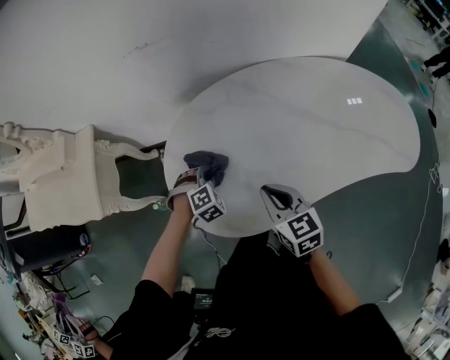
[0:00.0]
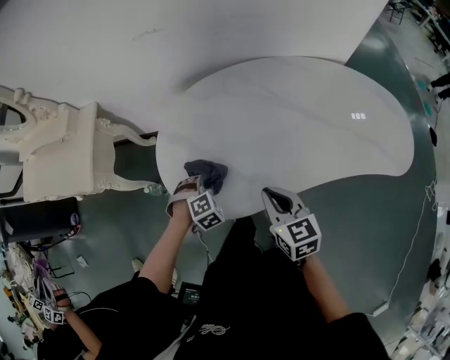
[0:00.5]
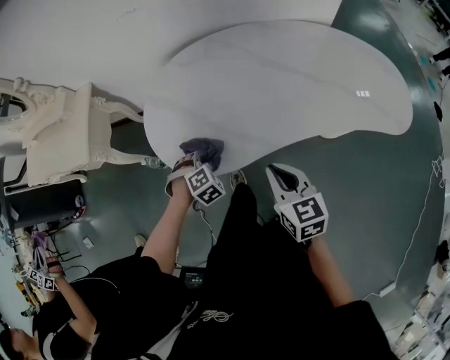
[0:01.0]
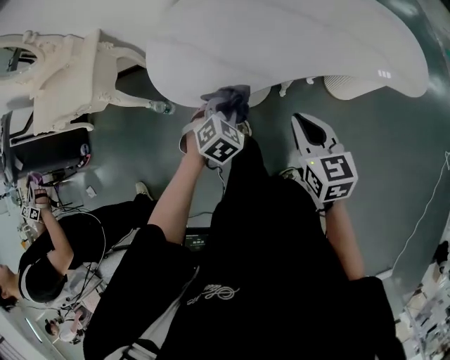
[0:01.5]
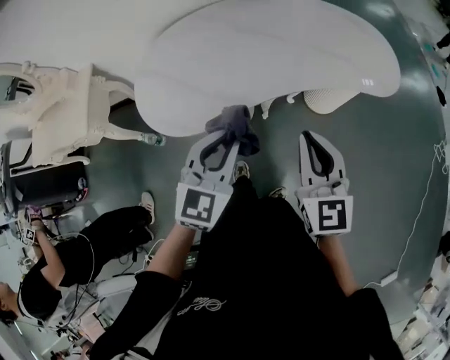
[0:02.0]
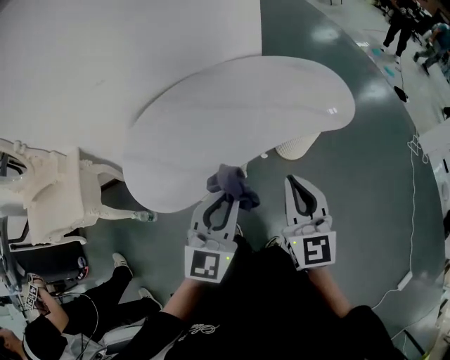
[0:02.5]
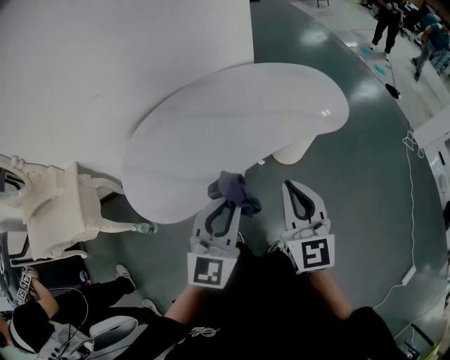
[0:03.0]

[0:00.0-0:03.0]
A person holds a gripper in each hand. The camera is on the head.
0:00.0 to 0:01.5: The two grippers go approximately 30 cm backward and to the right. The left gripper changes its angle by approximately 20 degrees.
0:01.5 to 0:03.0: The left gripper shifts about 25 cm upward, and points its fingers about 50 degrees further upward. The right gripper goes about 20 cm upward, and turns by about 40 degrees.

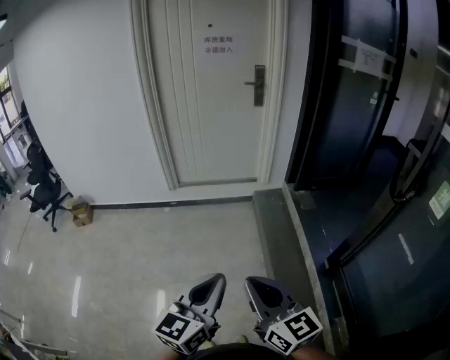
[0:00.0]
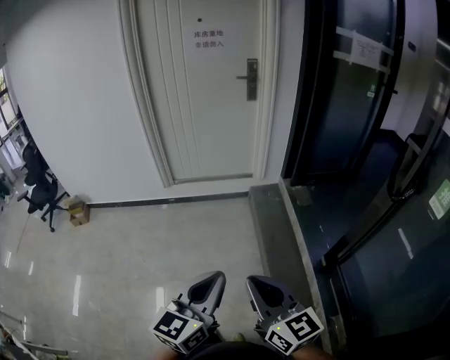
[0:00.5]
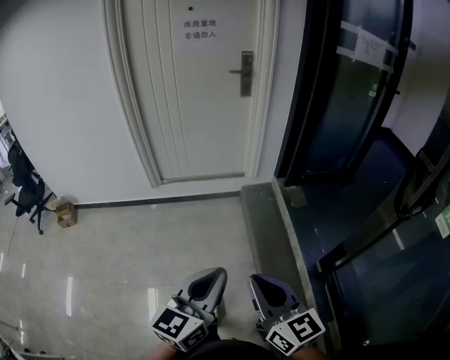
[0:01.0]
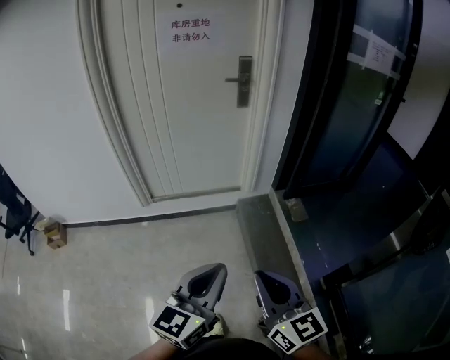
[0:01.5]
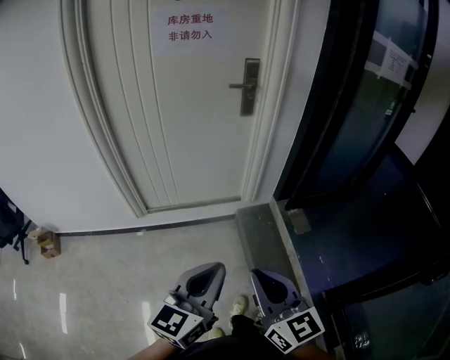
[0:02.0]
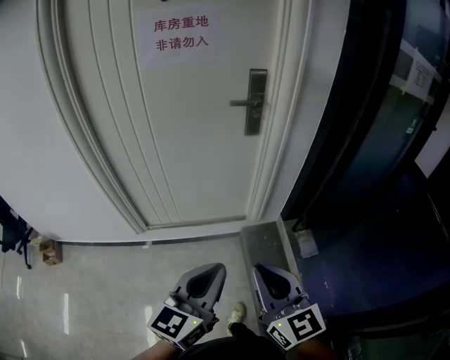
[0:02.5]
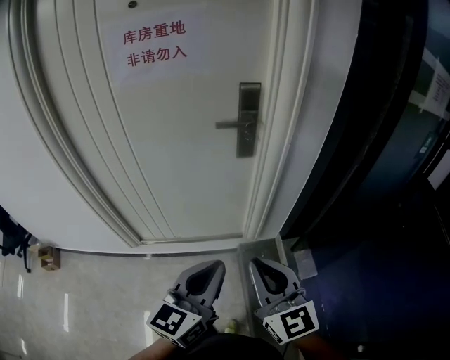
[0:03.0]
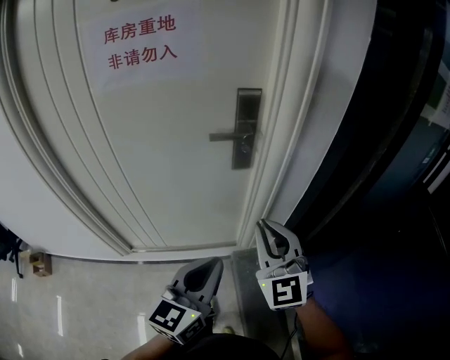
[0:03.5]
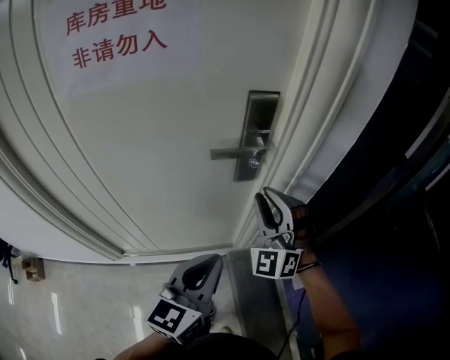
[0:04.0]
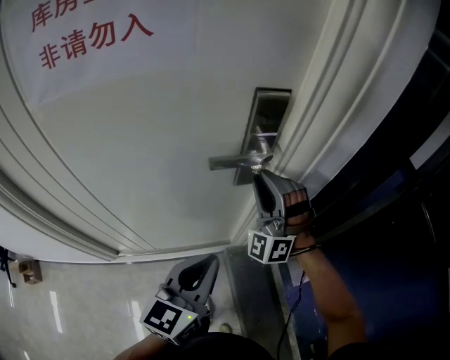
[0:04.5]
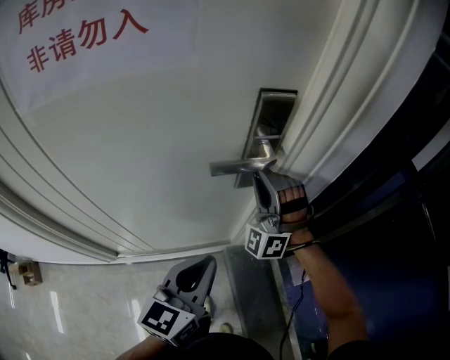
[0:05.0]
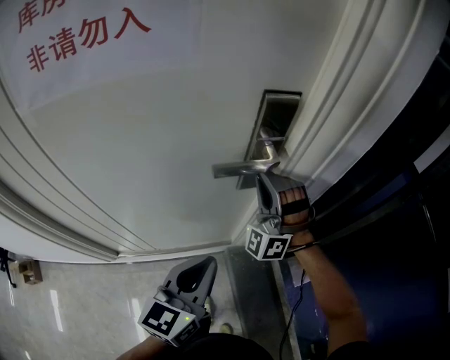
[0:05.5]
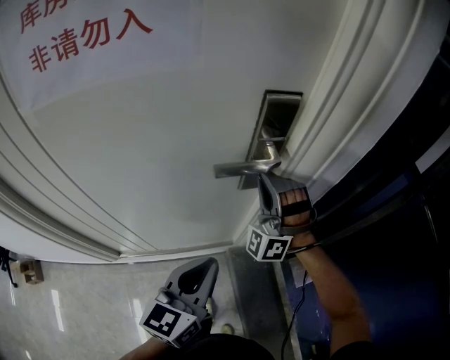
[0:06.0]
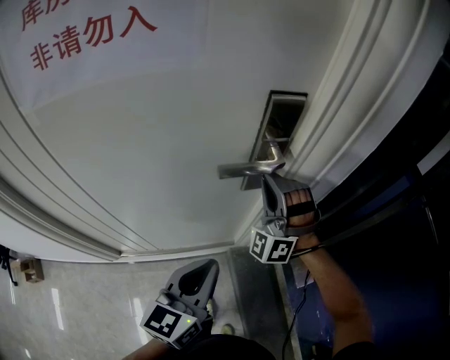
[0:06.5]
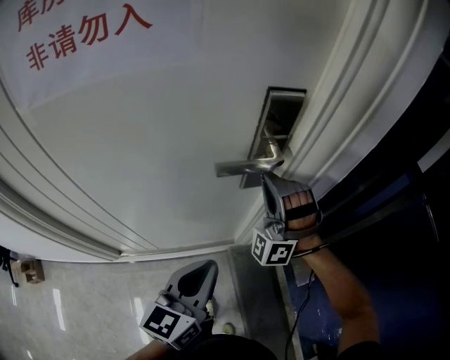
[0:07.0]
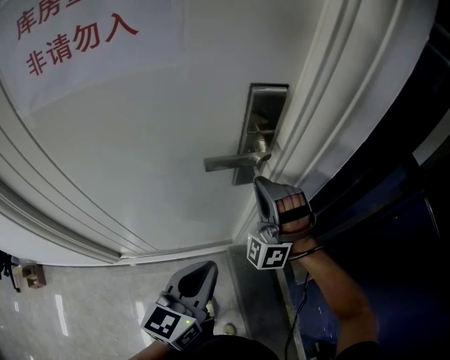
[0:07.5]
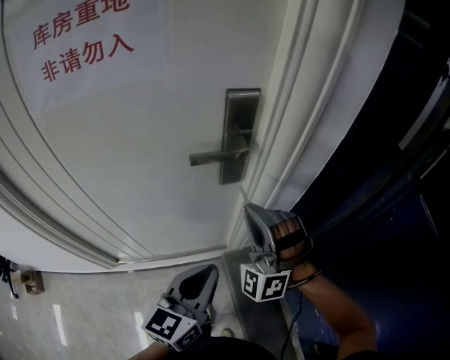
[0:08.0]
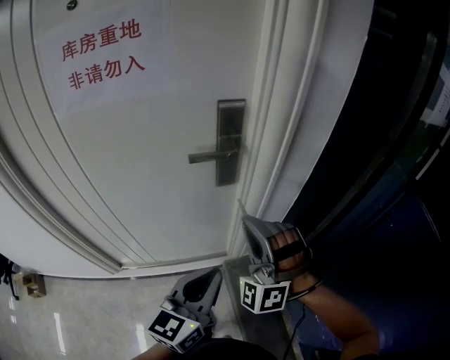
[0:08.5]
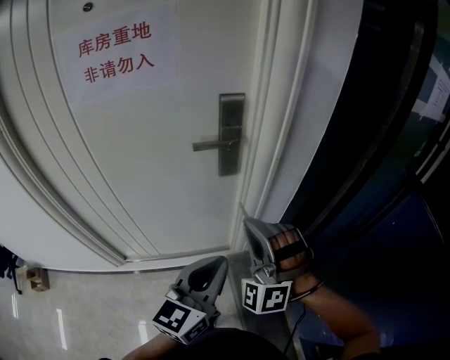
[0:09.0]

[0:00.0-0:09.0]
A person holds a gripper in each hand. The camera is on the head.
0:00.0 to 0:02.0: The pair of grippers is taken forward, about 40 cm.
0:02.0 to 0:04.5: Both grippers are carried forward, approximately 70 cm. The right gripper twists approximately 90 degrees counterclockwise, seen from behind.
0:04.5 to 0:07.0: The grippers move only a little.
0:07.0 to 0:09.0: The right gripper travels backward by approximately 25 cm; the left gripper travels backward, to the right and upward by approximately 20 cm.

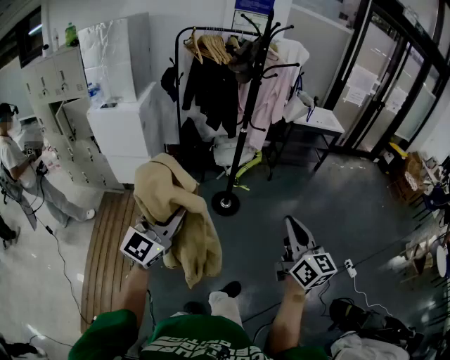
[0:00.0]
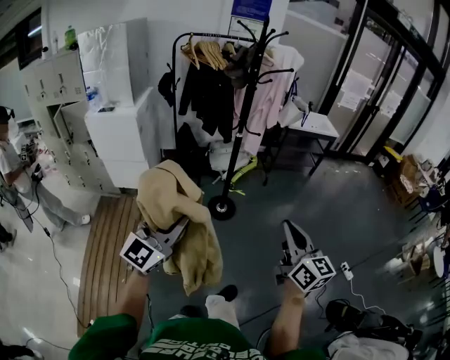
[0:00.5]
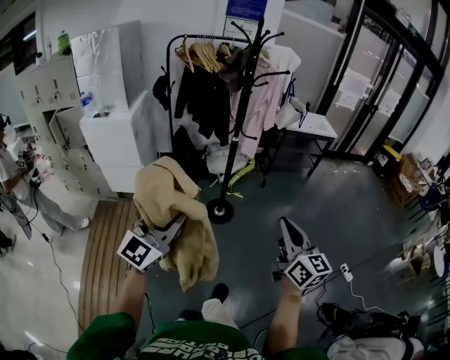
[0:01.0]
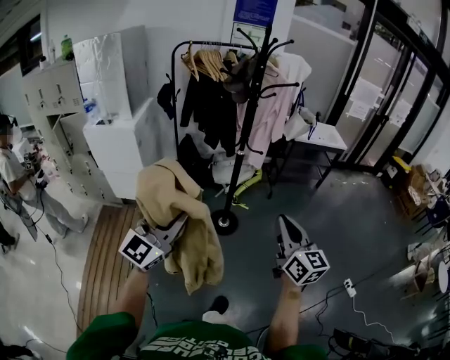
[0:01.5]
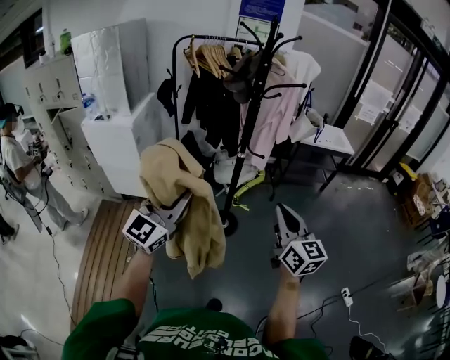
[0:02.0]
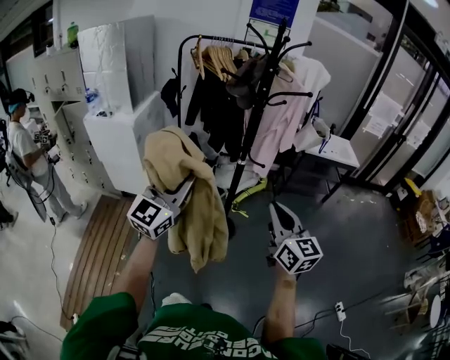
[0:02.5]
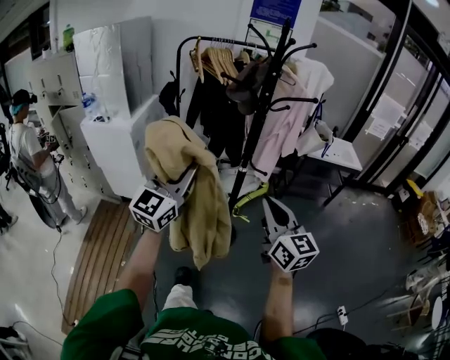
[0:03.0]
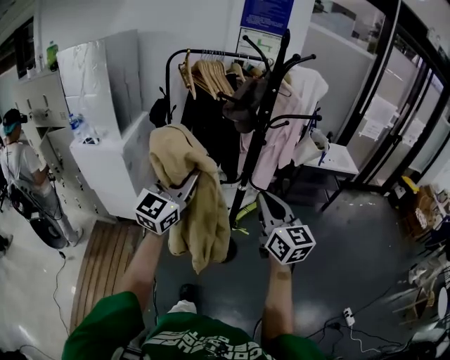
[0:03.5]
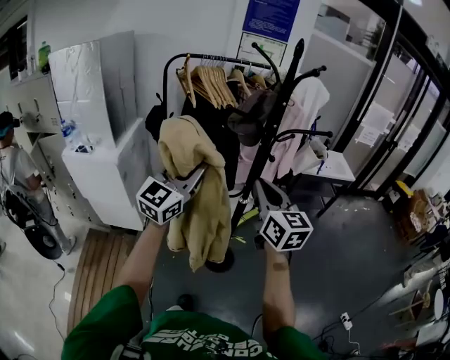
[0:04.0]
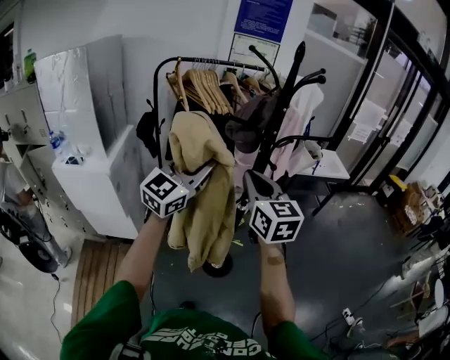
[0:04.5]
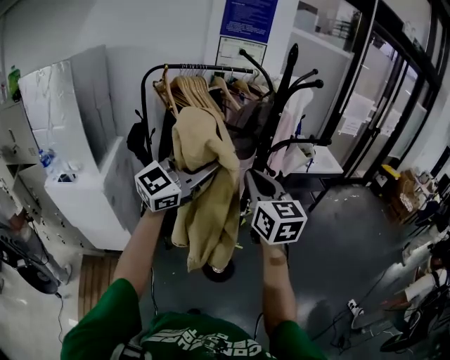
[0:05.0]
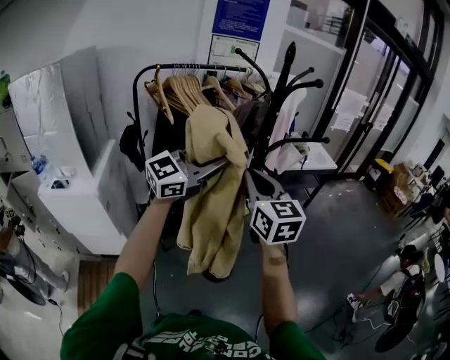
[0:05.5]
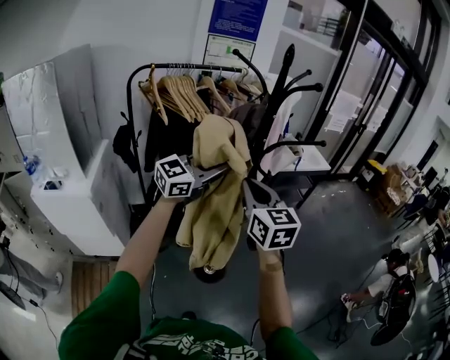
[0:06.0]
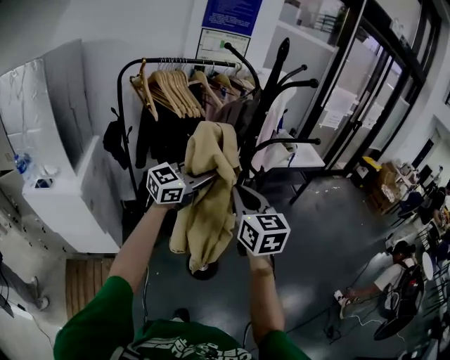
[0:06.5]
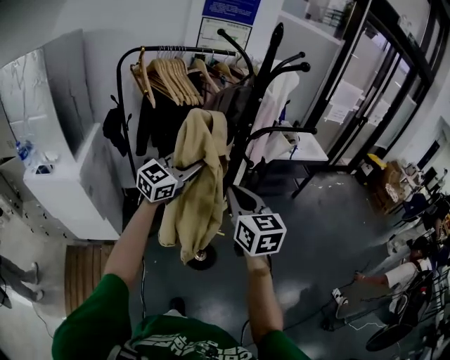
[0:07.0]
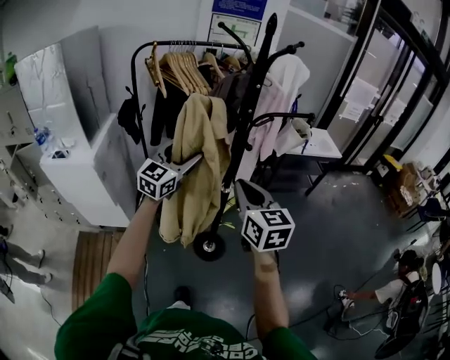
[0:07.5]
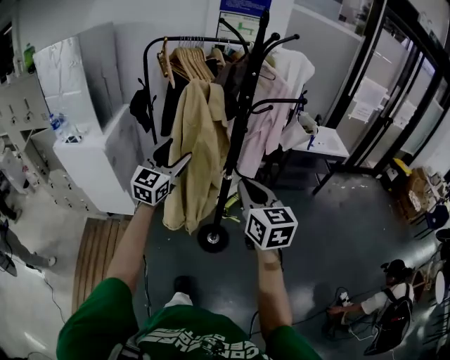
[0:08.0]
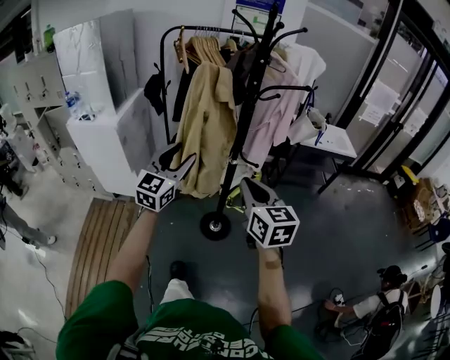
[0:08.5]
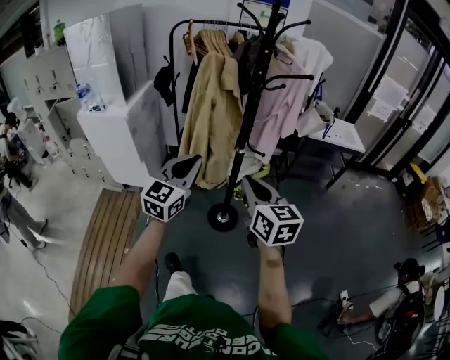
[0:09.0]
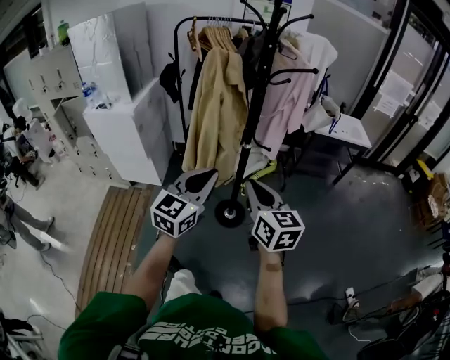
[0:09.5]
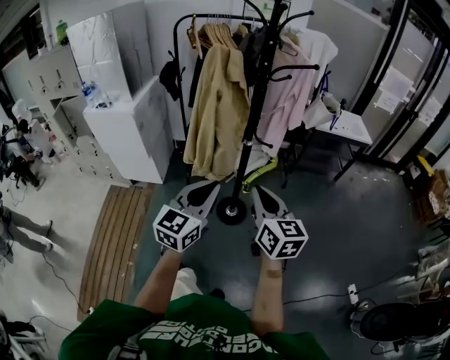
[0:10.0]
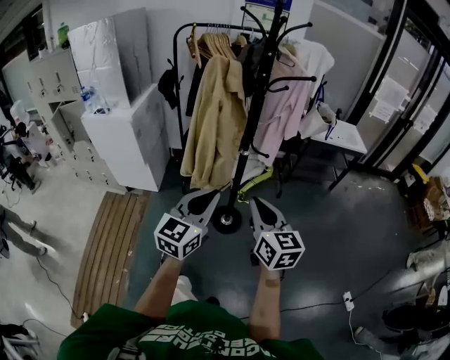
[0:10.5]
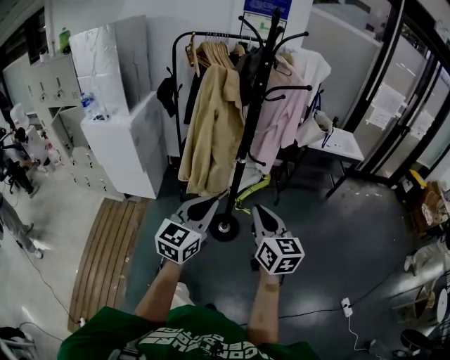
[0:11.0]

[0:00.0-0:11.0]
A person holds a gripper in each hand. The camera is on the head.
0:00.0 to 0:02.0: The grippers both shift forward by about 20 cm.
0:02.0 to 0:03.5: The left gripper heads forward, covering approximately 25 cm. The right gripper is displaced forward and to the left by approximately 20 cm.
0:03.5 to 0:05.5: The left gripper ends up some 15 cm from where it was, and swivels approximately 40 degrees. Meanwhile the right gripper shifts by approximately 20 cm.
0:05.5 to 0:07.5: The left gripper goes approximately 10 cm downward, rotates some 40 degrees, and opens, while the right gripper moves to the right and downward, some 10 cm.
0:07.5 to 0:09.0: The right gripper heads backward, covering about 15 cm. The left gripper shifts approximately 25 cm backward, and closes its fingers.
0:09.0 to 0:11.0: The right gripper shifts by about 5 cm, while the left gripper goes some 10 cm backward and to the right.

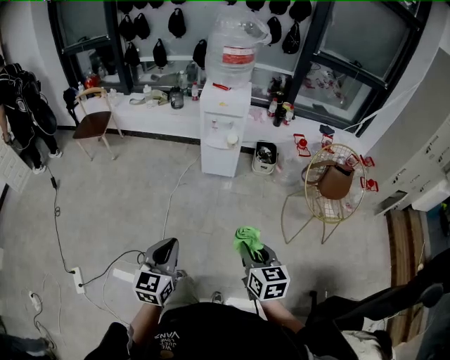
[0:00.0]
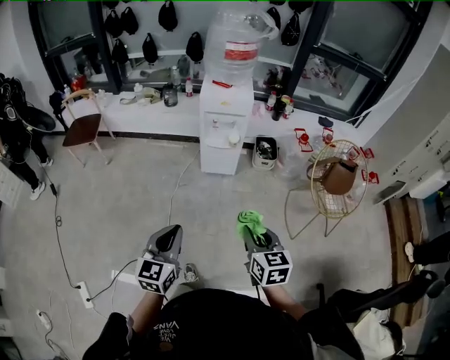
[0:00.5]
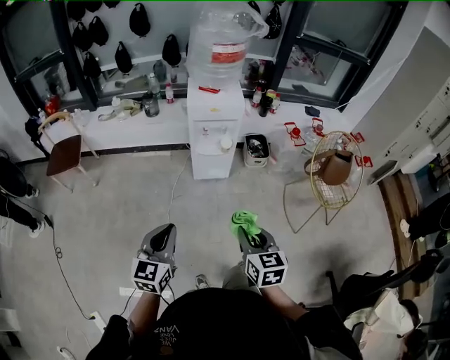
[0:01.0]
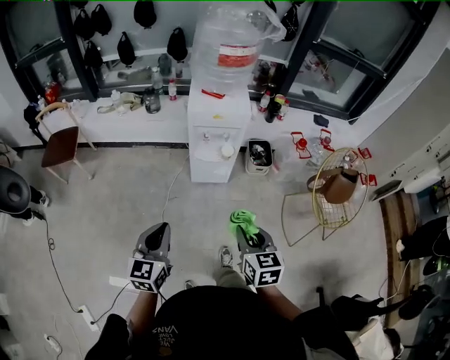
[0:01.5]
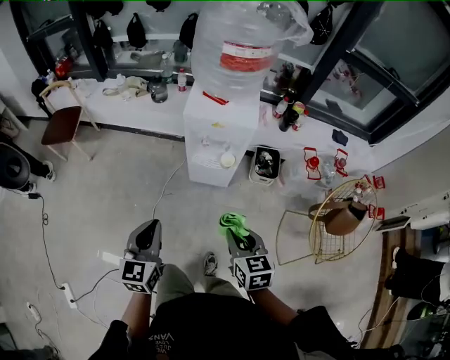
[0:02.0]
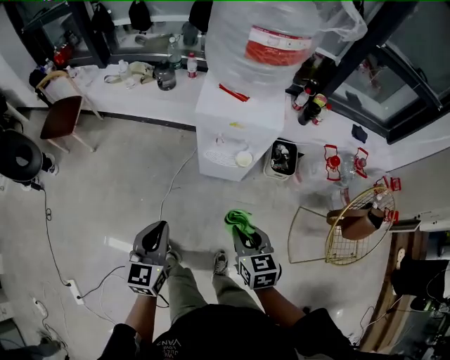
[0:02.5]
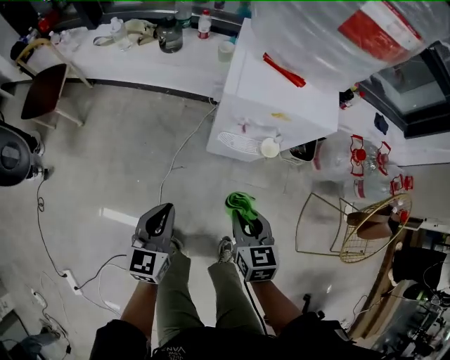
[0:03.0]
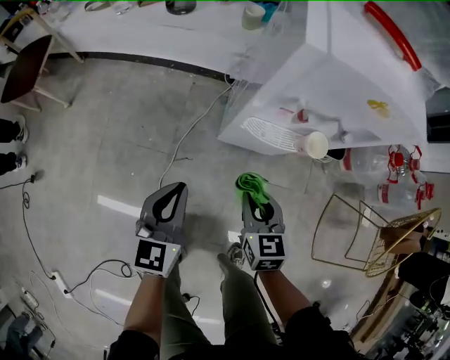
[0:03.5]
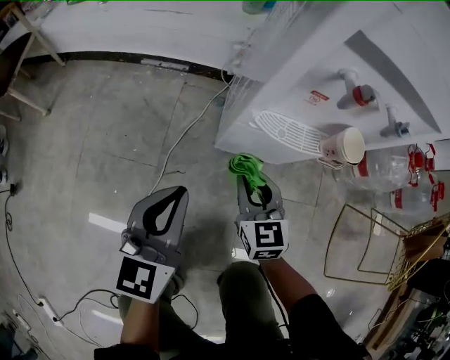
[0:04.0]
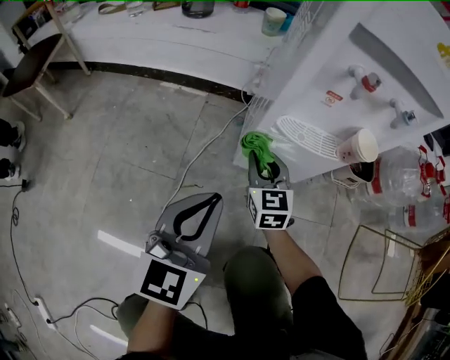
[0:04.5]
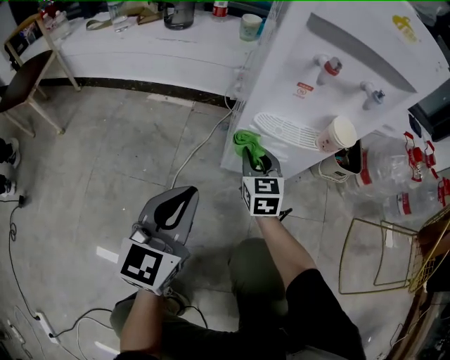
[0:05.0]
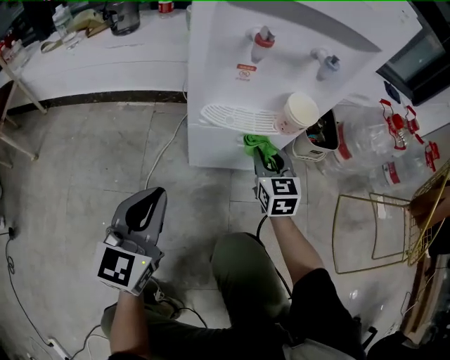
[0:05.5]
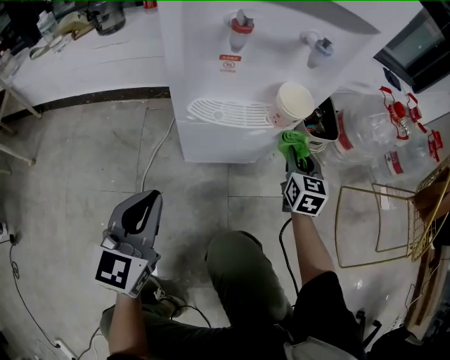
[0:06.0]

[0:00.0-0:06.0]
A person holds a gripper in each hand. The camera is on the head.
0:00.0 to 0:02.0: The two grippers go roughly 40 cm forward.
0:02.0 to 0:04.0: Both grippers travel together downward and forward, approximately 50 cm.
0:04.0 to 0:06.0: The left gripper goes about 5 cm to the right; the right gripper goes about 30 cm to the right, and rotates about 30 degrees.
